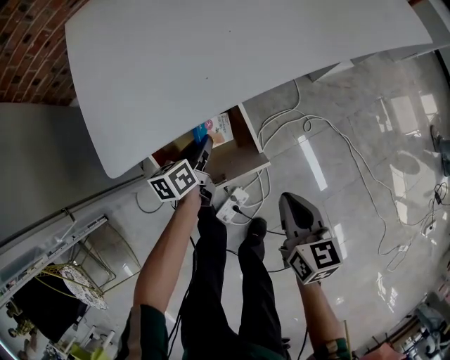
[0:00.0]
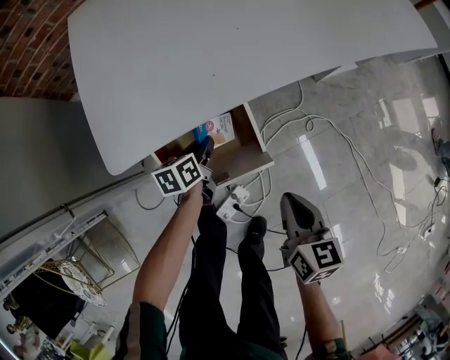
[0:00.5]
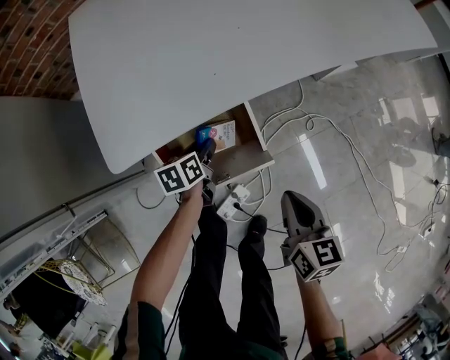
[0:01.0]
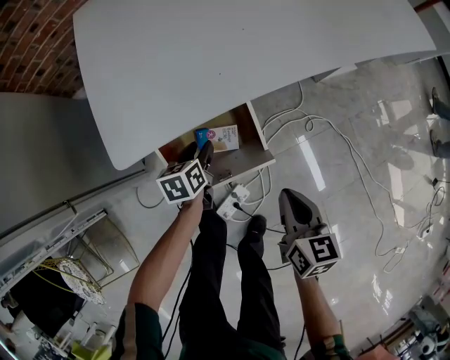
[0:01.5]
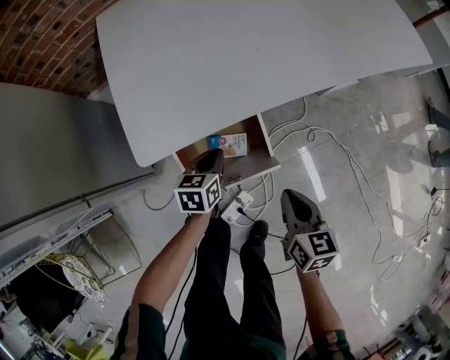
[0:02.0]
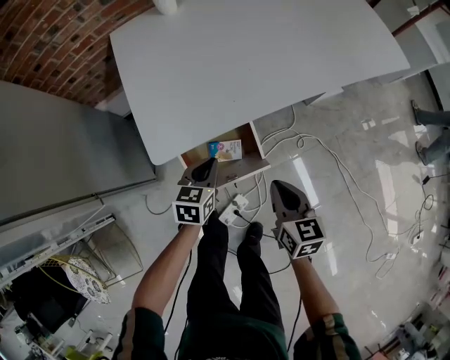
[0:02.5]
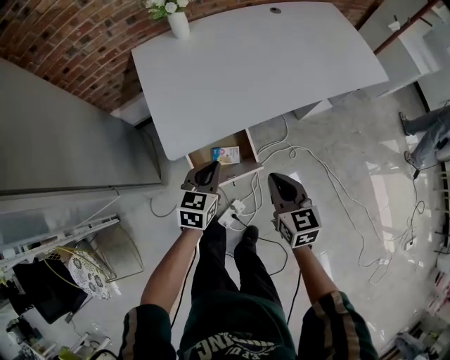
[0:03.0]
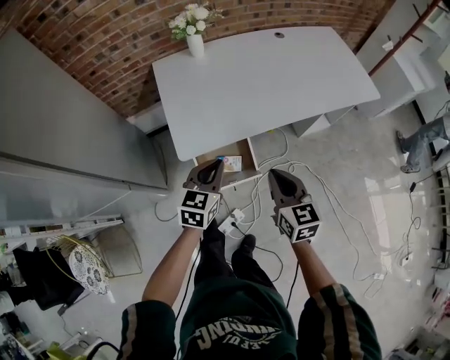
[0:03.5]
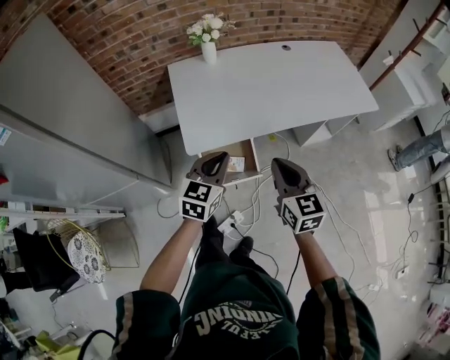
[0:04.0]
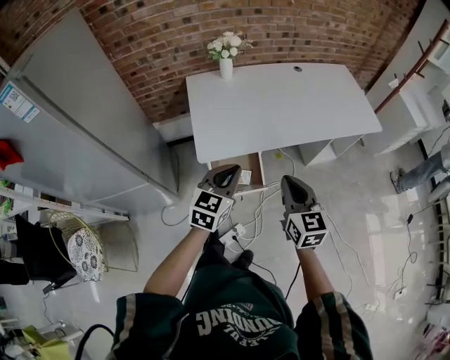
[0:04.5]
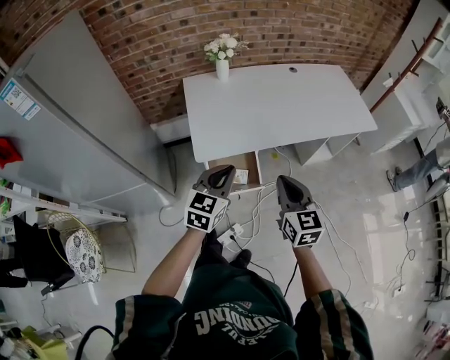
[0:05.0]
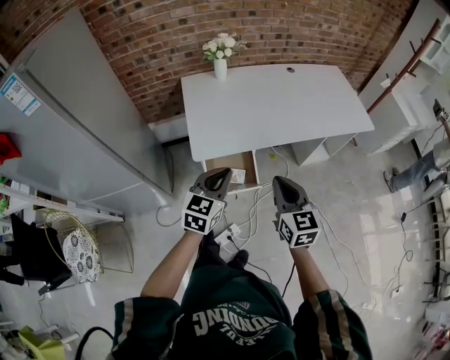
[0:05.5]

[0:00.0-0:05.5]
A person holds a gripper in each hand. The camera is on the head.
0:00.0 to 0:02.0: The left gripper ends up about 5 cm from where it was, swivels roughly 20 degrees, and opens and closes again.
0:02.0 to 0:03.5: Both grippers move upward, approximately 30 cm. The left gripper rotates some 30 degrees. The right gripper changes its angle by some 20 degrees.
0:03.5 to 0:05.5: Both grippers move upward and backward, some 10 cm.

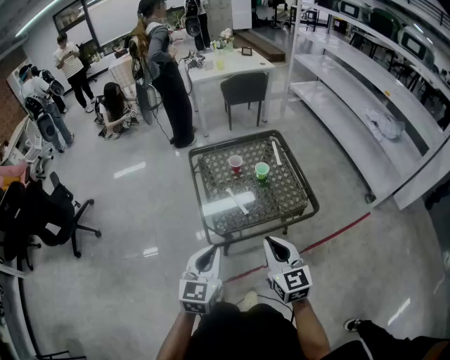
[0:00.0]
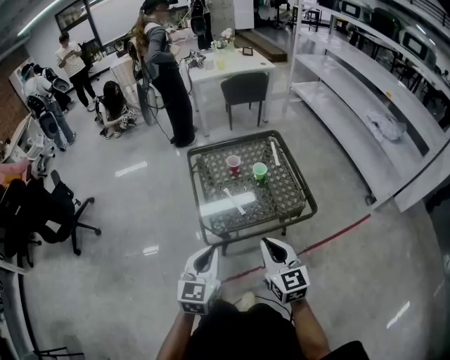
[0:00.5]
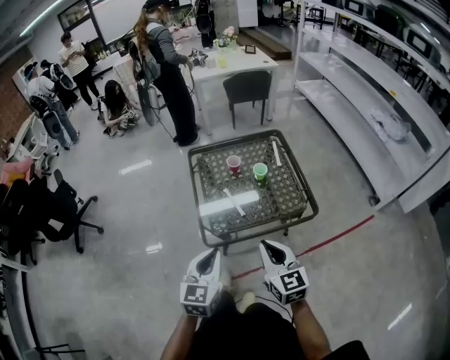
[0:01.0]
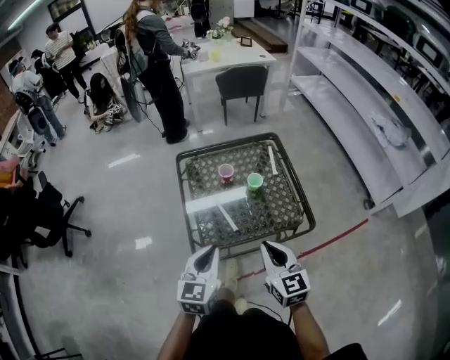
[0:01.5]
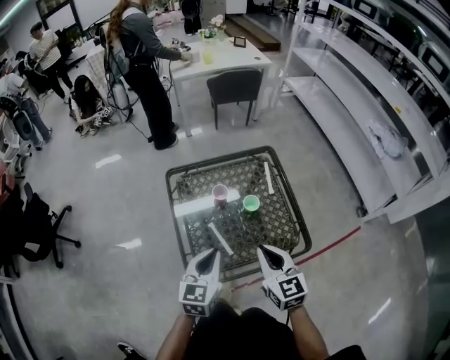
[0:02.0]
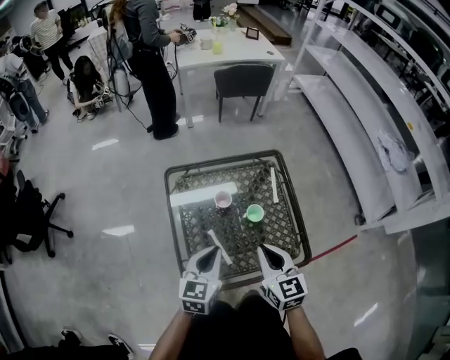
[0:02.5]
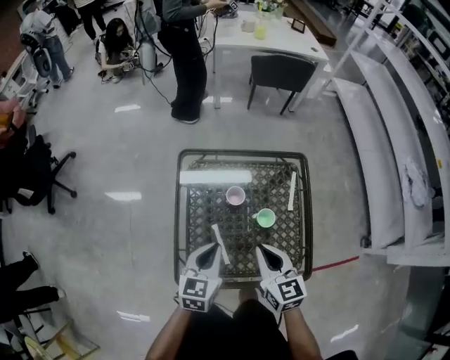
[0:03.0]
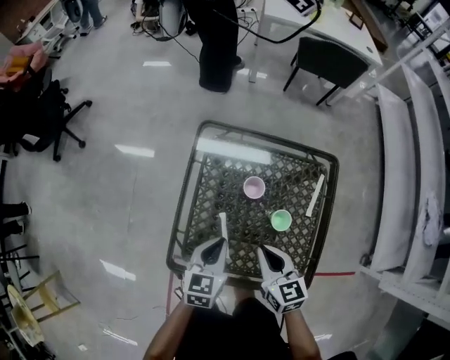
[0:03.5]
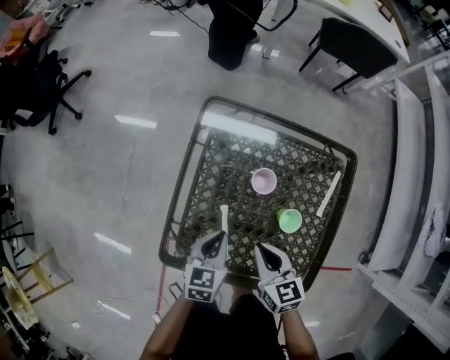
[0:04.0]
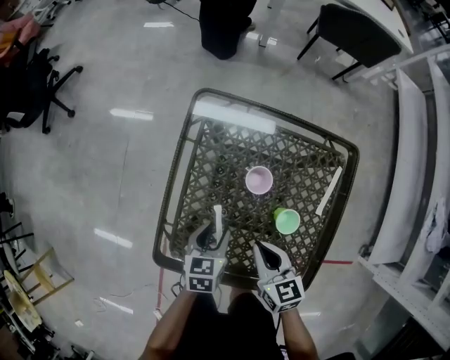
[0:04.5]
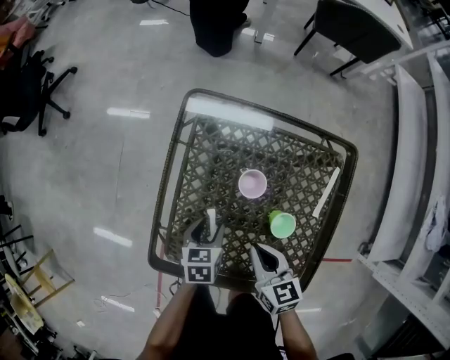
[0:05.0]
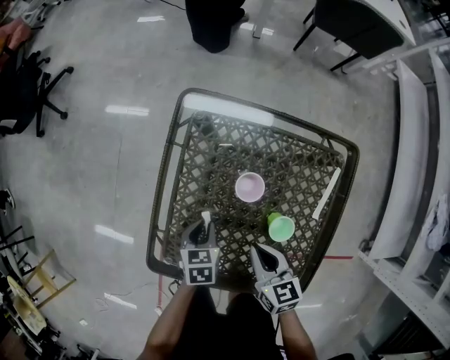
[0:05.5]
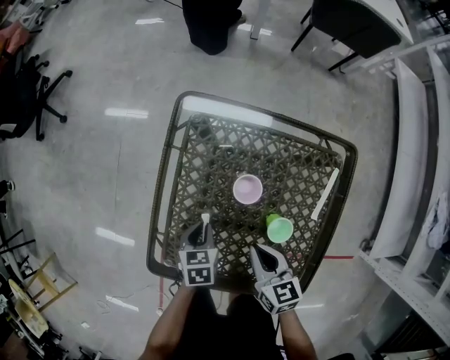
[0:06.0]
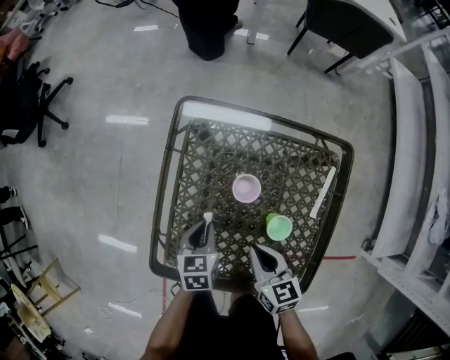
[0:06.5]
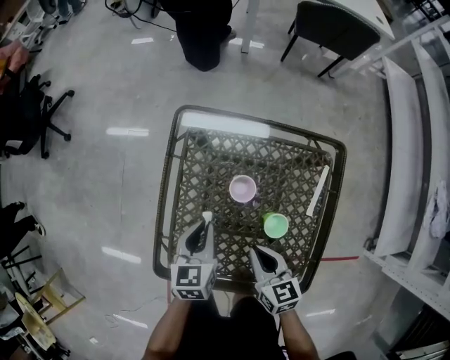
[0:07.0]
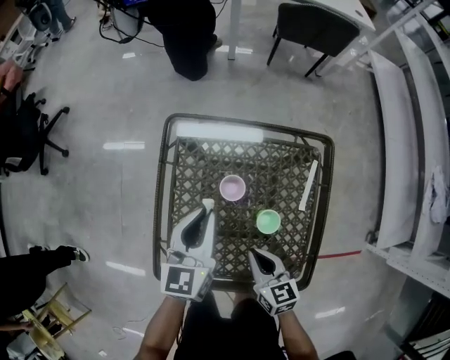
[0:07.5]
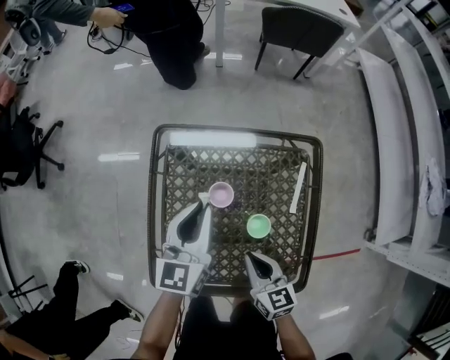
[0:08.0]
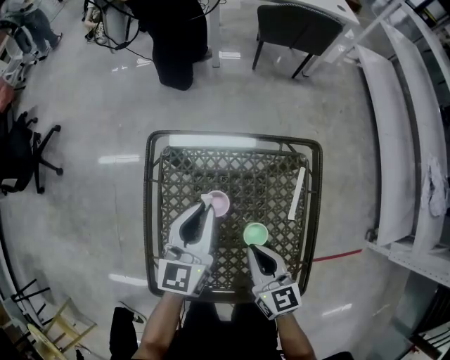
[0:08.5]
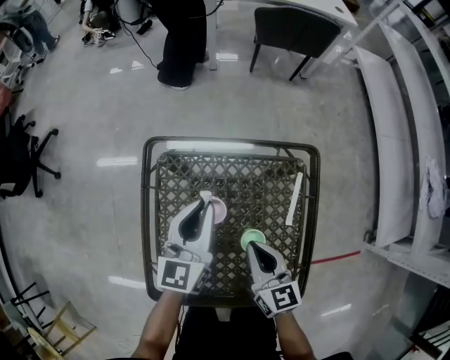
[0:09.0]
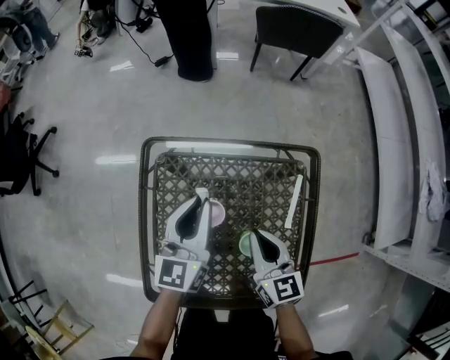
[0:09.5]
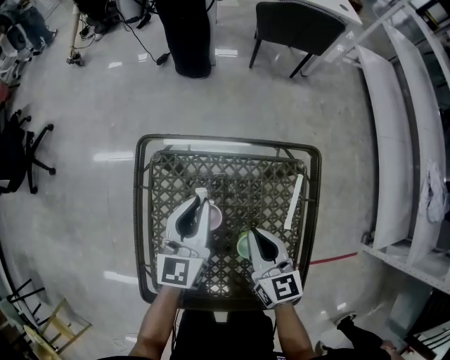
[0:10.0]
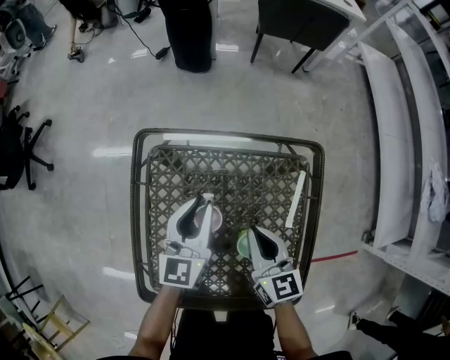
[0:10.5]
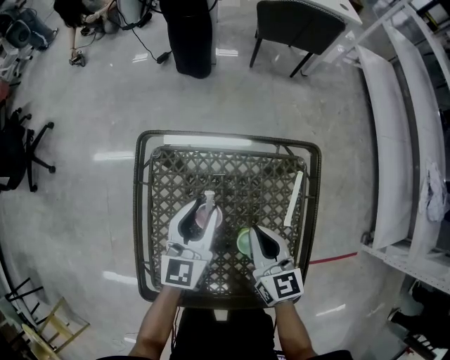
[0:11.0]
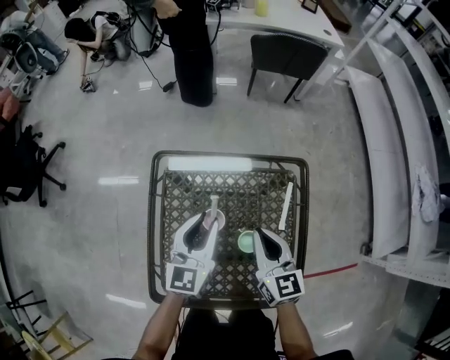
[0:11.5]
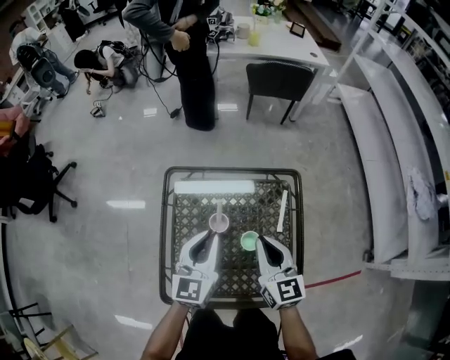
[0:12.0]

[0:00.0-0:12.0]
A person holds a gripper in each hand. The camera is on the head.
0:00.0 to 0:02.0: Both grippers move forward, approximately 25 cm.
0:02.0 to 0:04.0: The two grippers go roughly 20 cm downward. The left gripper rotates roughly 30 degrees. Meanwhile the right gripper changes its angle by roughly 40 degrees.
0:04.0 to 0:06.0: The right gripper moves downward, some 5 cm. The left gripper shifts about 10 cm downward, turns by roughly 20 degrees, and opens and closes again.
0:06.0 to 0:08.0: The left gripper heads upward and forward, covering about 25 cm, and tilts its fingers about 50 degrees upward. Meanwhile the right gripper shifts some 5 cm upward.
0:08.0 to 0:10.0: The right gripper moves forward, roughly 15 cm; the left gripper travels forward and downward by approximately 10 cm.
0:10.0 to 0:12.0: The left gripper moves upward and backward, approximately 15 cm, and opens, then closes once more; the right gripper moves upward, approximately 15 cm.

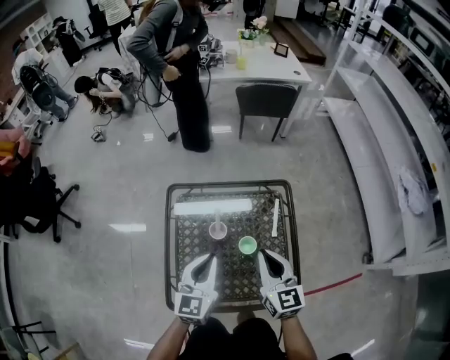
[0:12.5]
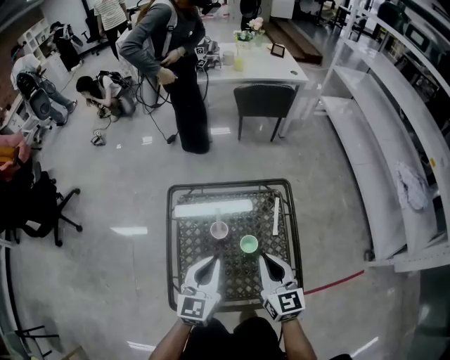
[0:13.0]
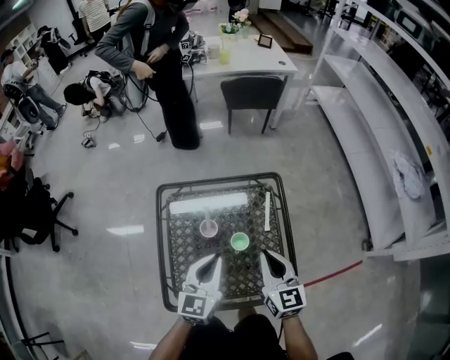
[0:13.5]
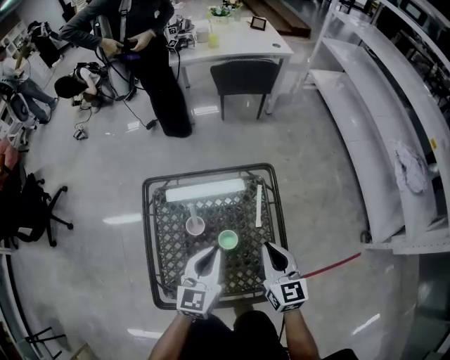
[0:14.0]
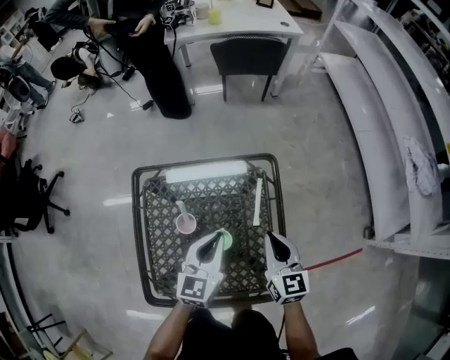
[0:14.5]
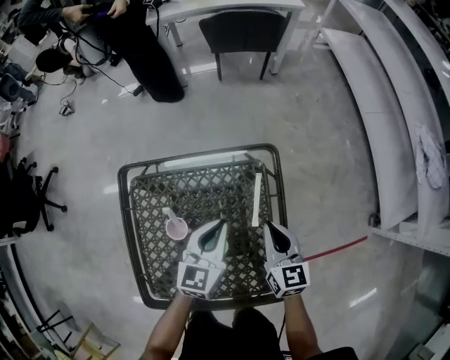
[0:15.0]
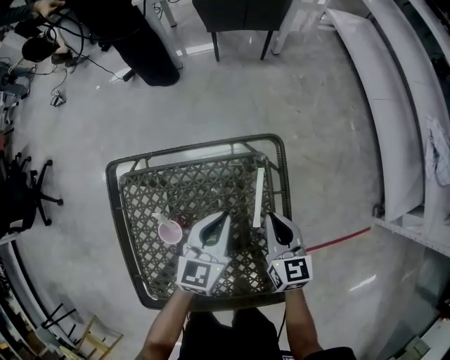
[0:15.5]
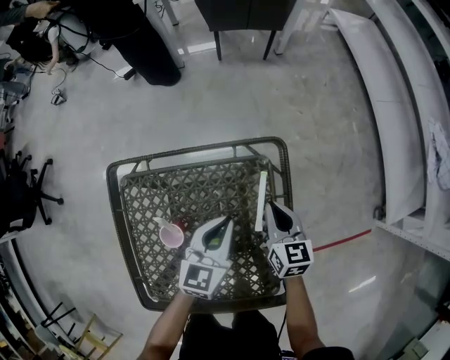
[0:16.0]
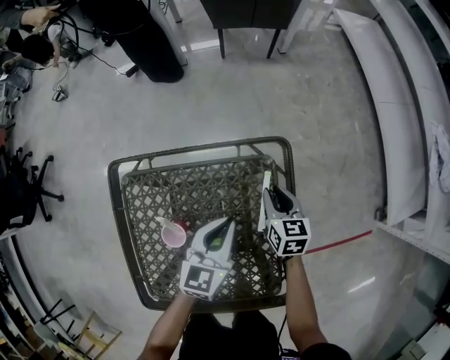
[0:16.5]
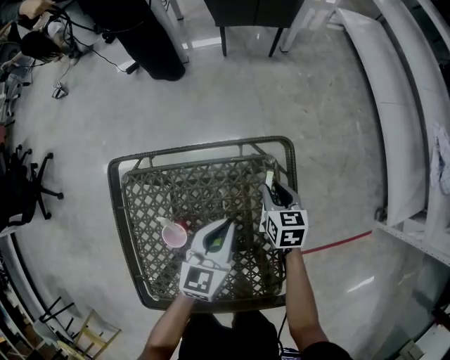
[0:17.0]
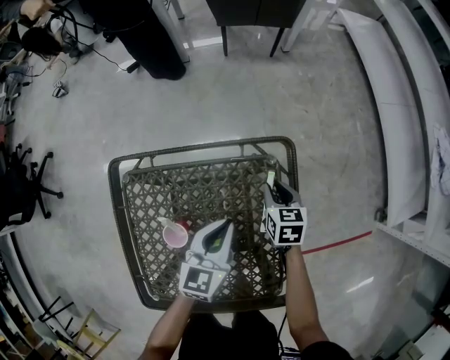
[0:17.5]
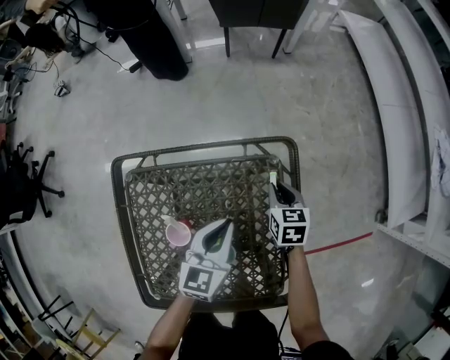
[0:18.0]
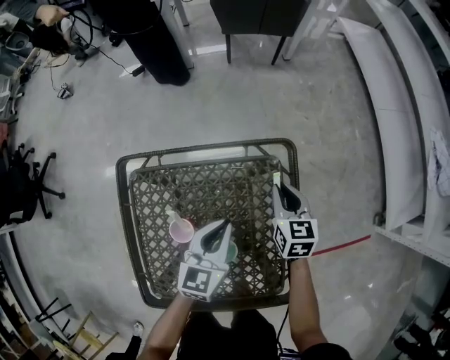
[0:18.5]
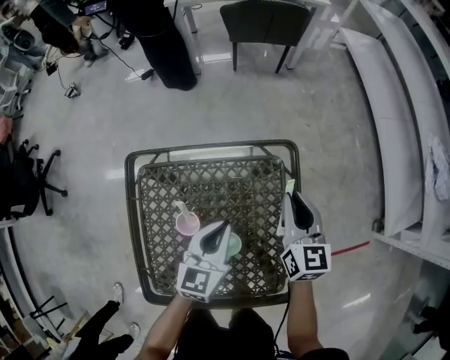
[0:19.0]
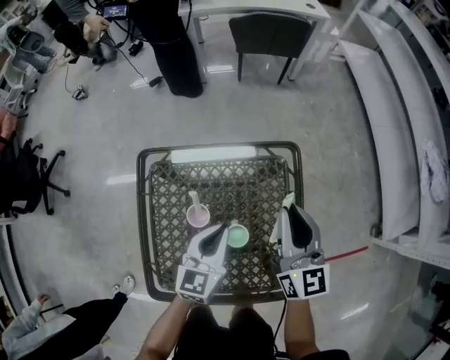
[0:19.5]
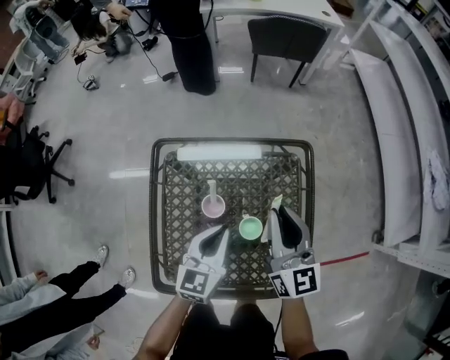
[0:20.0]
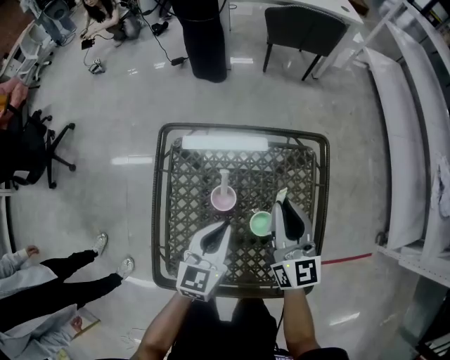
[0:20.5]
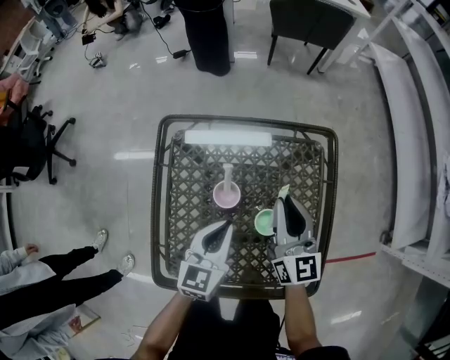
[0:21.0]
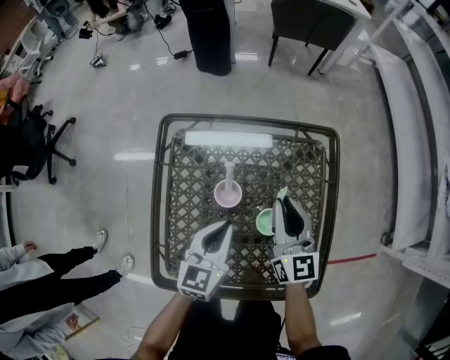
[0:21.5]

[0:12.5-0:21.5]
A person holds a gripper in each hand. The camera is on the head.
0:12.5 to 0:14.5: The grippers both shift to the right, downward and forward by approximately 20 cm.
0:14.5 to 0:17.0: The left gripper is displaced downward and forward by roughly 15 cm. The right gripper shifts roughly 25 cm downward and forward, turns by roughly 30 degrees, and opens.
0:17.0 to 0:19.5: The left gripper heads backward, upward and to the left, covering some 10 cm. The right gripper goes approximately 30 cm upward, and angles its fingers upward, by about 40 degrees.
0:19.5 to 0:21.5: The left gripper goes roughly 15 cm downward, to the left and backward; the right gripper is displaced downward and to the left by some 15 cm.
